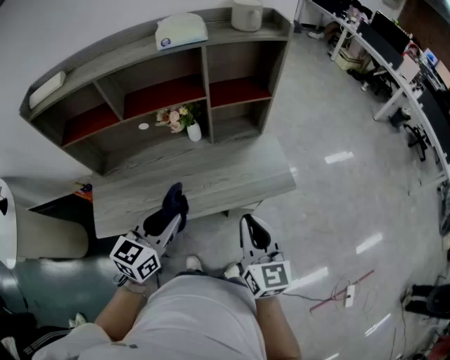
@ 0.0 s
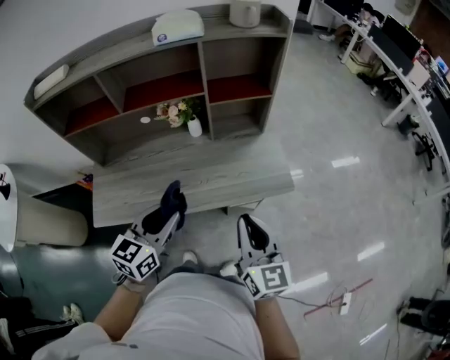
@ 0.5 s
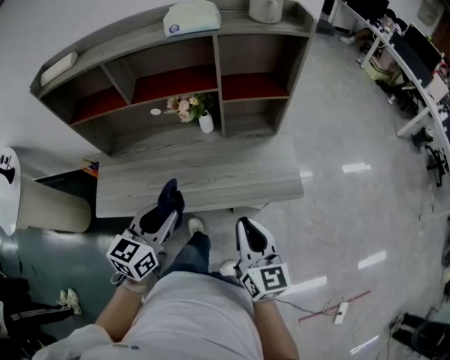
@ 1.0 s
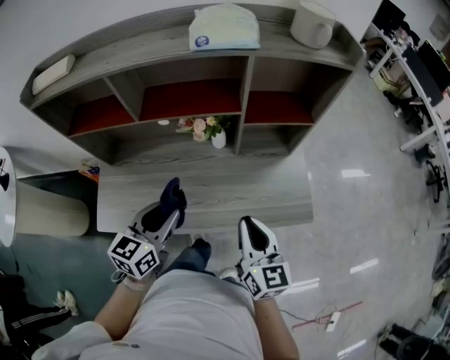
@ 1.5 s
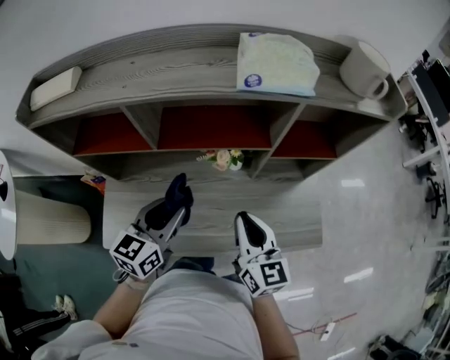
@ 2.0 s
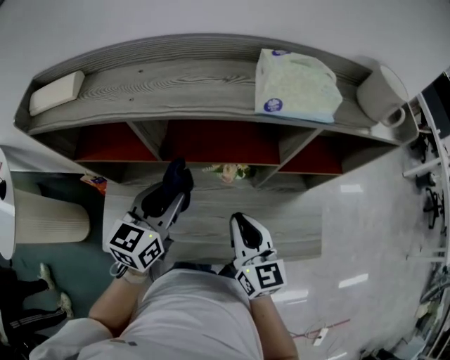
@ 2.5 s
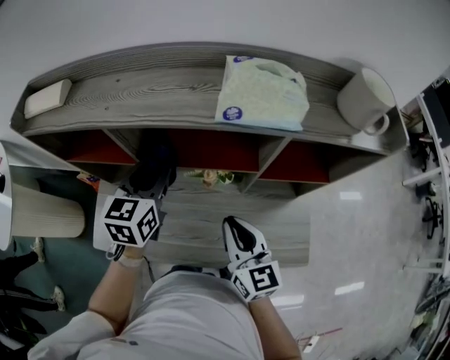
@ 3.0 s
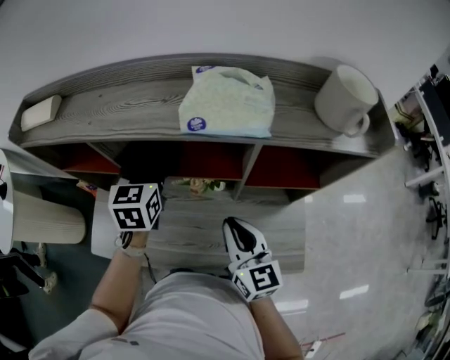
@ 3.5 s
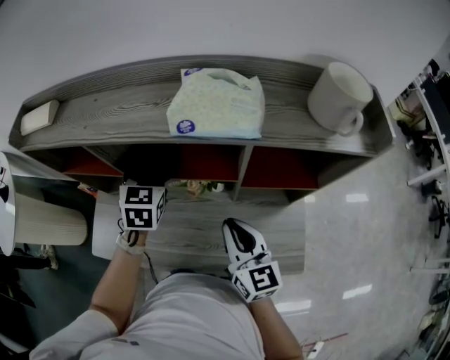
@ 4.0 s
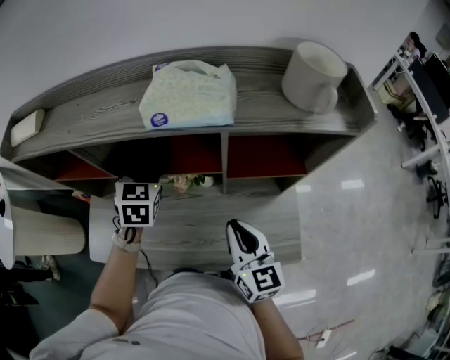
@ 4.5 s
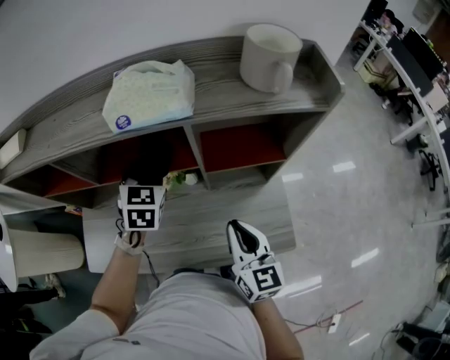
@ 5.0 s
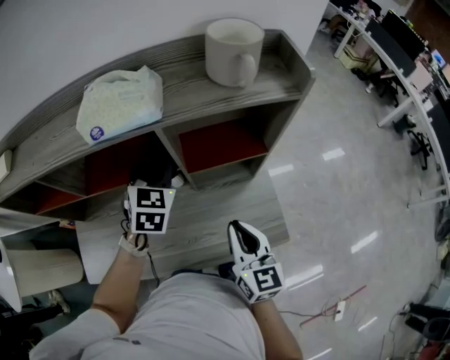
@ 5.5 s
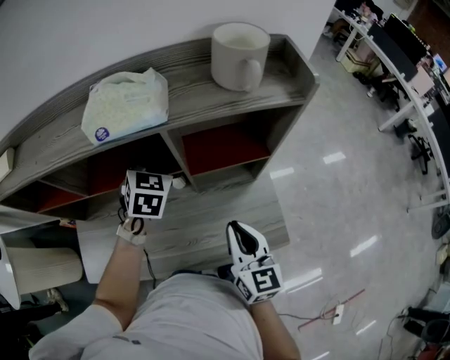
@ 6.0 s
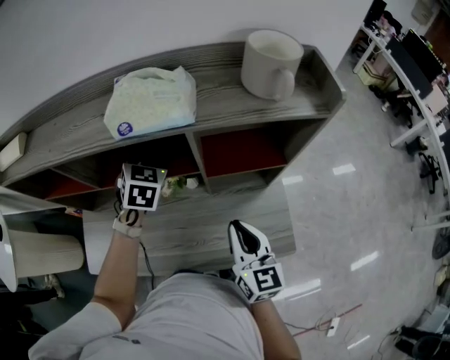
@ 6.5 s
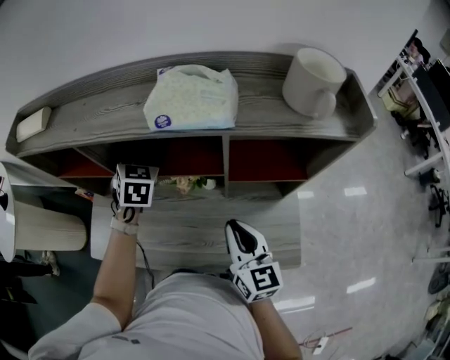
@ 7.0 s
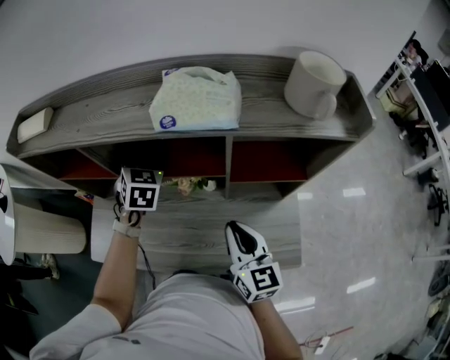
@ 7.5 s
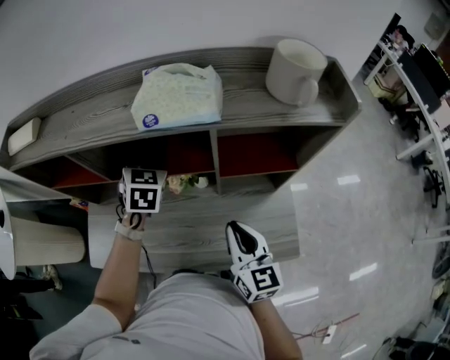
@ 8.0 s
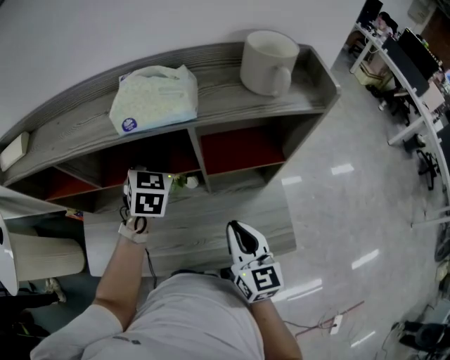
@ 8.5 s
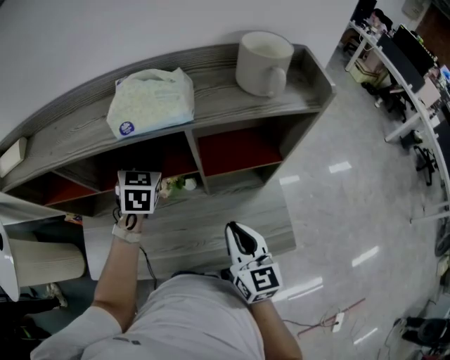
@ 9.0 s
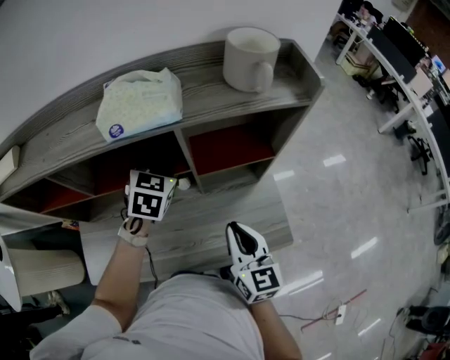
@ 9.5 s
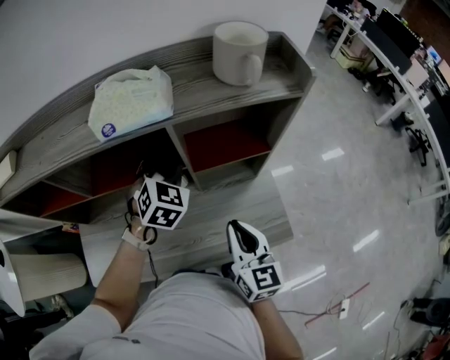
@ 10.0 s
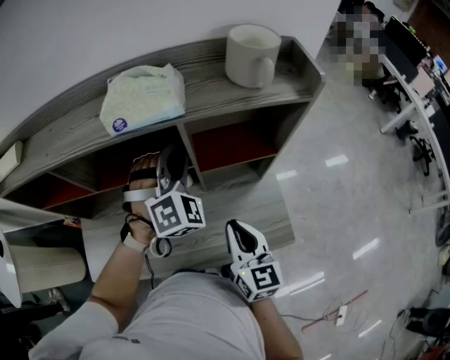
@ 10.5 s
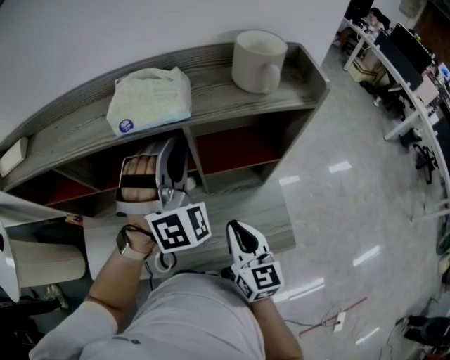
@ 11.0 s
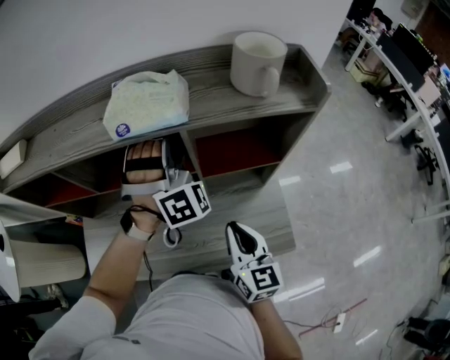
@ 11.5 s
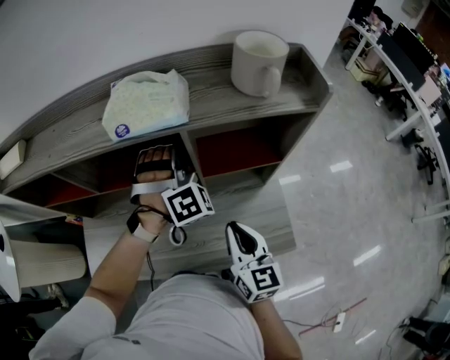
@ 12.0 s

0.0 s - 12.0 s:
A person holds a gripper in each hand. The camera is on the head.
0.0 s - 2.0 s: Both grippers move forward and to the left, about 25 cm.
2.0 s - 4.0 s: The left gripper heads forward, covering roughly 20 cm, and changes its angle by some 40 degrees. Meanwhile the right gripper heads to the right and forward, covering some 10 cm.
4.0 s - 6.0 s: The right gripper heads to the right and backward, covering about 10 cm, and swivels some 20 degrees. Meanwhile the left gripper goes approximately 15 cm to the right, and swivels roughly 20 degrees.
6.0 s - 8.0 s: The right gripper moves to the left, roughly 5 cm; the left gripper heads to the left, covering approximately 10 cm.
8.0 s - 10.0 s: The right gripper shifts by roughly 5 cm, while the left gripper shifts about 15 cm to the right, changes its angle by some 30 degrees, and opens, then closes again.
10.0 s - 12.0 s: The left gripper goes upward and returns, about 15 cm each way, and turns by some 40 degrees.

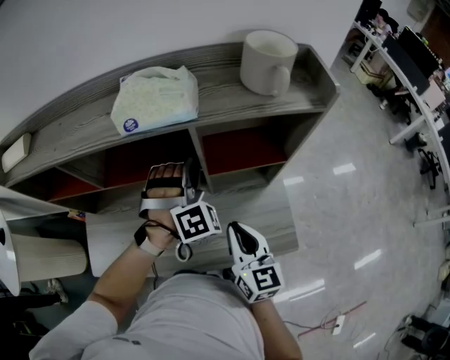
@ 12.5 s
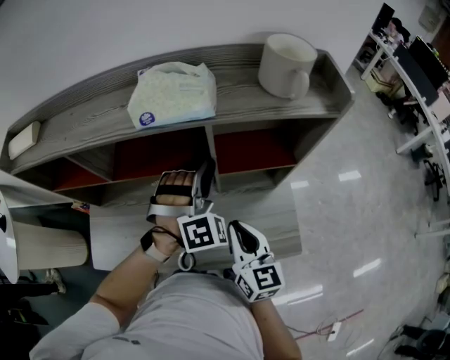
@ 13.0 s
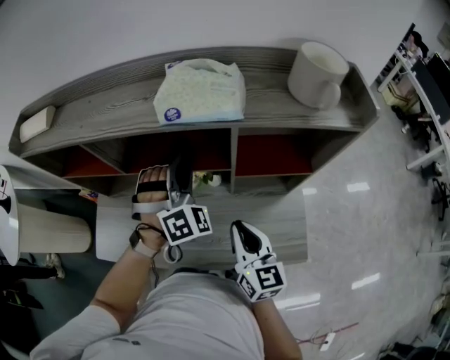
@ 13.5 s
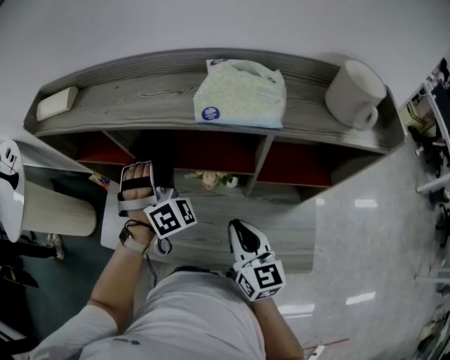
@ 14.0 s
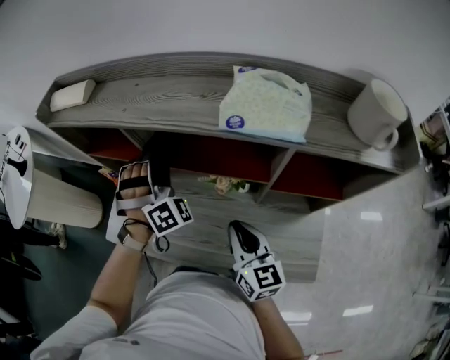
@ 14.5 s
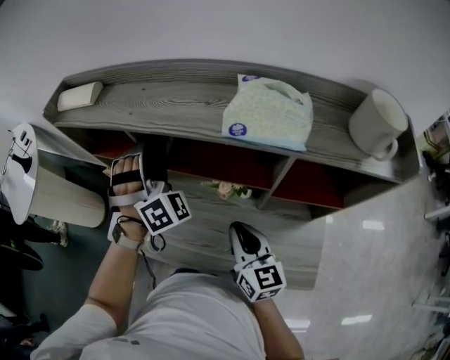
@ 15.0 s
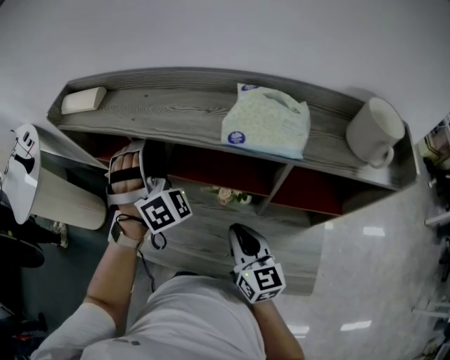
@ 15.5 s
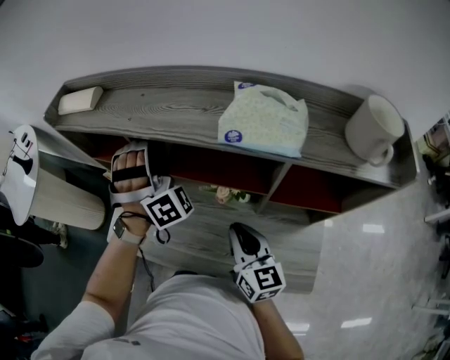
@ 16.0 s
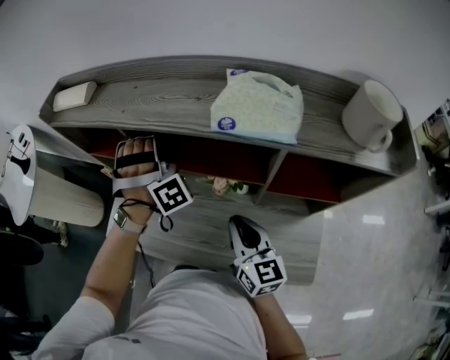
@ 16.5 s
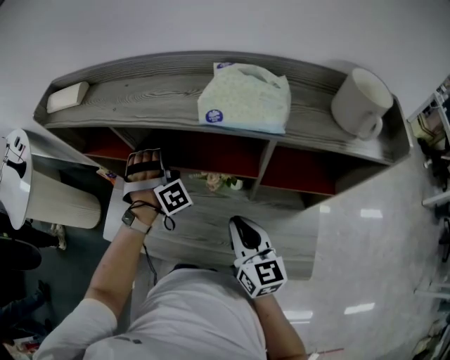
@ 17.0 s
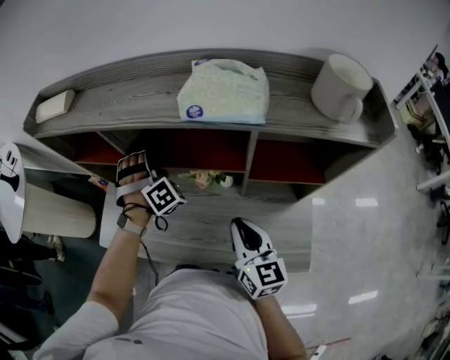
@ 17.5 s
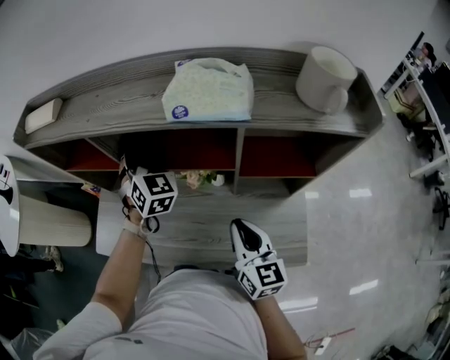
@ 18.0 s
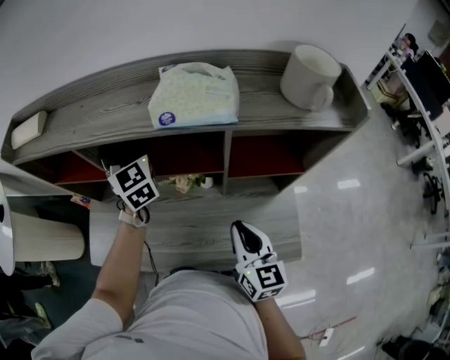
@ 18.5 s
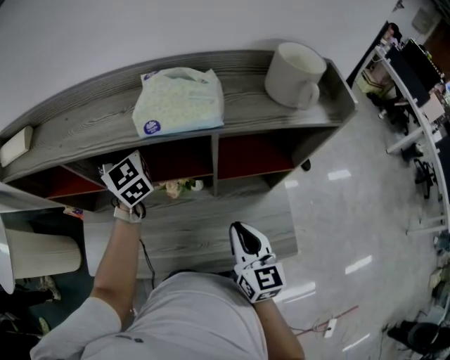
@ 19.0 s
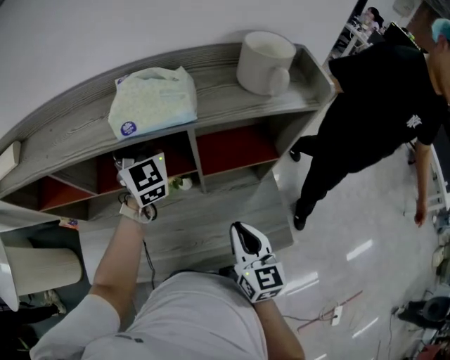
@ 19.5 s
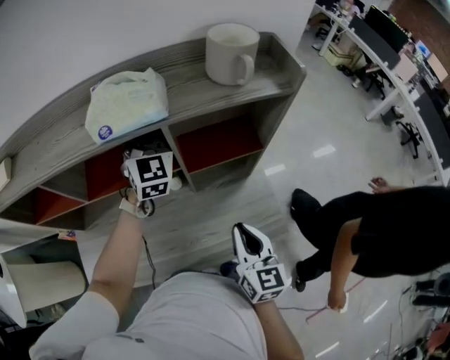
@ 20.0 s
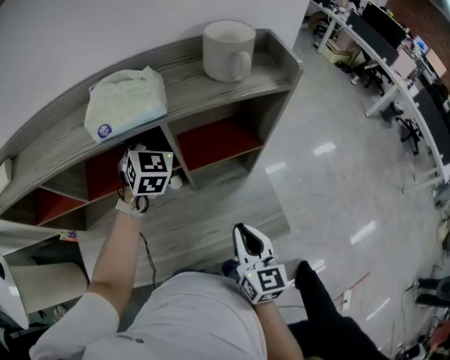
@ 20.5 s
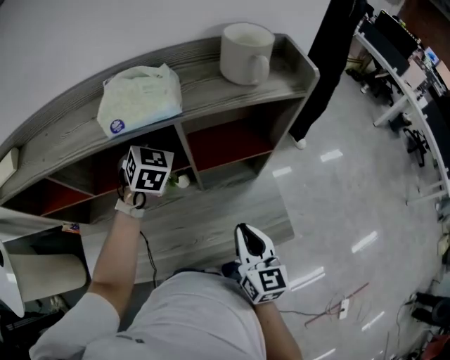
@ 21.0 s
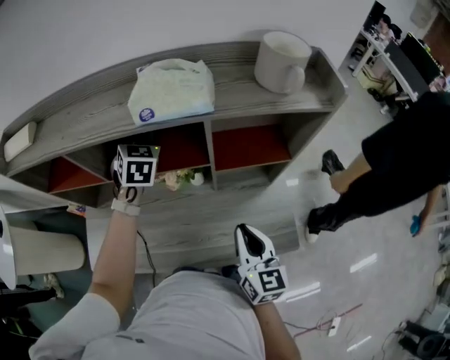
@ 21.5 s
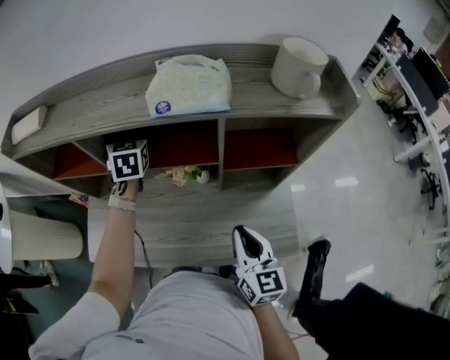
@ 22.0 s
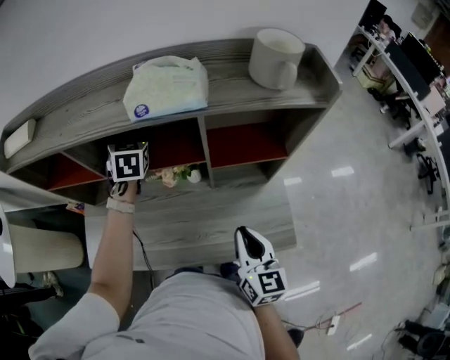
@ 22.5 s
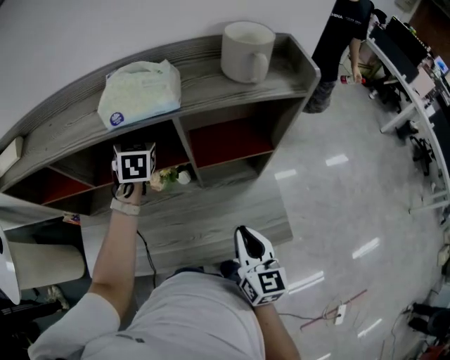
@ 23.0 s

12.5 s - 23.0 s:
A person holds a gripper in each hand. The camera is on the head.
12.5 s - 14.5 s: The right gripper shifts by some 15 cm, and changes its angle by approximately 20 degrees; the left gripper changes place by some 25 cm, and turns by about 30 degrees.
14.5 s - 16.5 s: The left gripper shifts by roughly 5 cm.
16.5 s - 19.0 s: The right gripper is displaced backward and to the right by some 10 cm, and turns by approximately 20 degrees, while the left gripper reaches approximately 10 cm downward, then returns, and rolls counterclockwise, seen from behind, by some 90 degrees.
19.0 s - 21.0 s: The right gripper ends up approximately 5 cm from where it was. Meanwhile the left gripper ends up roughly 20 cm from where it was, and swivels roughly 50 degrees.
21.0 s - 23.0 s: The left gripper travels to the left by roughly 5 cm, and changes its angle by about 20 degrees.

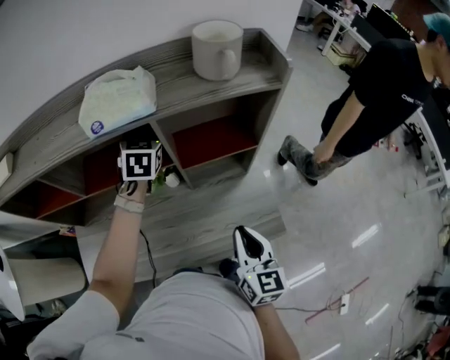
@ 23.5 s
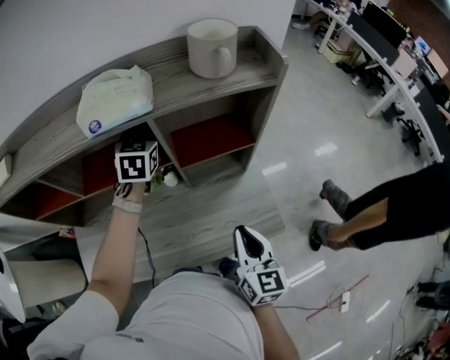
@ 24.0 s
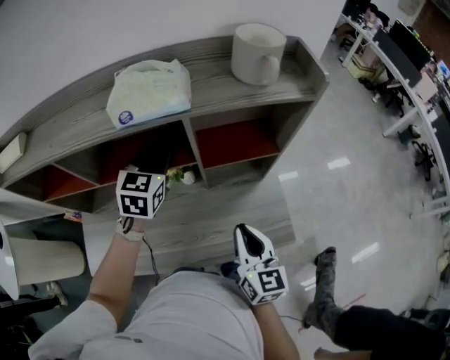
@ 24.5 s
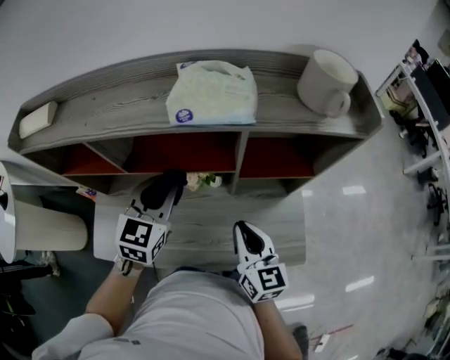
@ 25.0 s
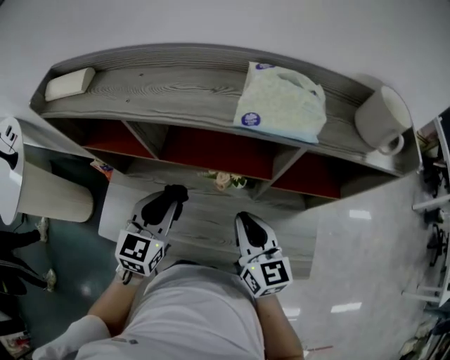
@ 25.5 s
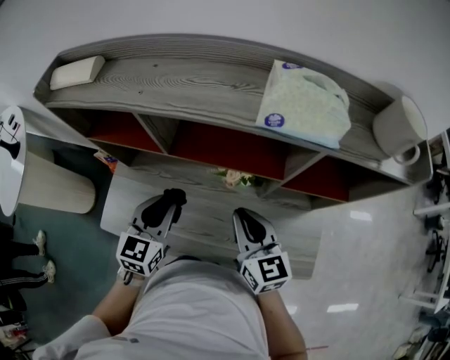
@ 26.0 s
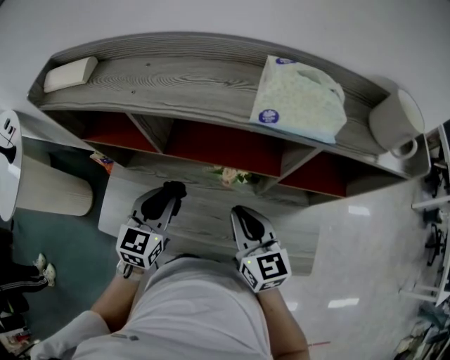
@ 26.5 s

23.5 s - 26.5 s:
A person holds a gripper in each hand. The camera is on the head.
23.5 s - 25.0 s: The left gripper is displaced backward and to the left by roughly 20 cm. The right gripper goes approximately 15 cm to the left and forward, and turns by roughly 20 degrees.
25.0 s - 26.5 s: The right gripper travels to the left and forward by approximately 10 cm. Meanwhile the left gripper moves to the left and downward, some 15 cm.

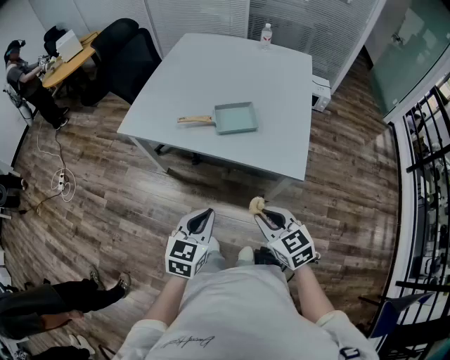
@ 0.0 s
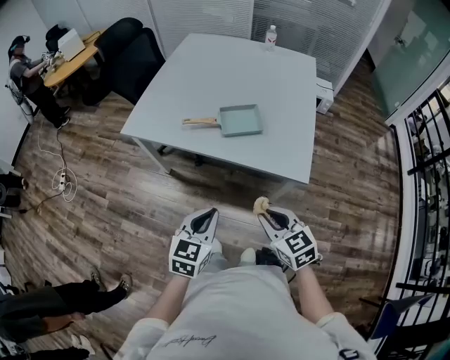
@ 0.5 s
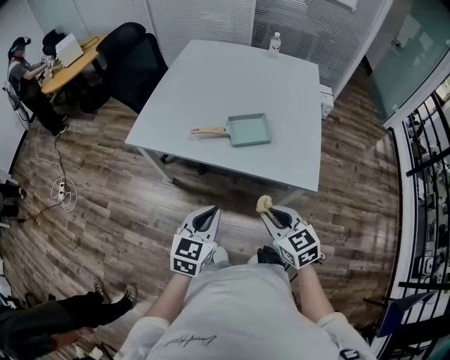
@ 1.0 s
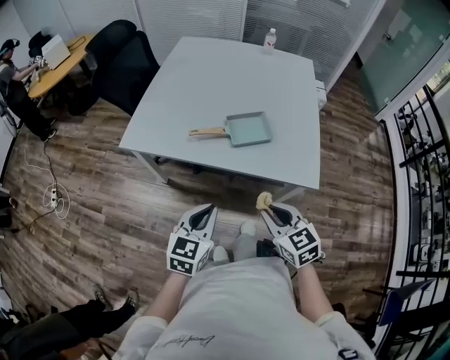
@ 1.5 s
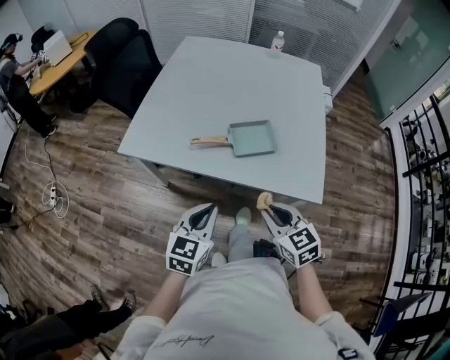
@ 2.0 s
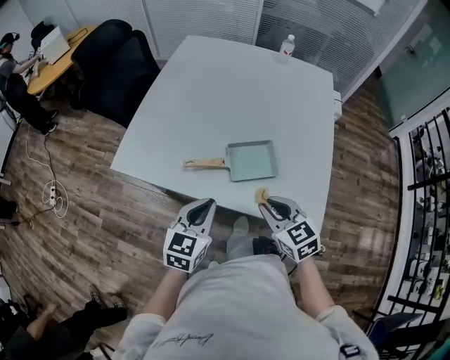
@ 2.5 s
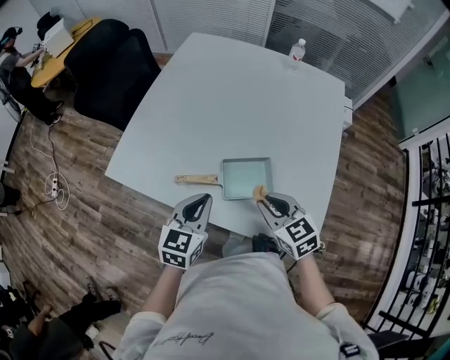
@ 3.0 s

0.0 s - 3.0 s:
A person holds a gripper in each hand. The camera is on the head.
0.0 s - 1.5 s: Both grippers travel together forward and to the left, approximately 10 cm.
1.5 s - 3.0 s: The grippers both shift forward by approximately 25 cm.
